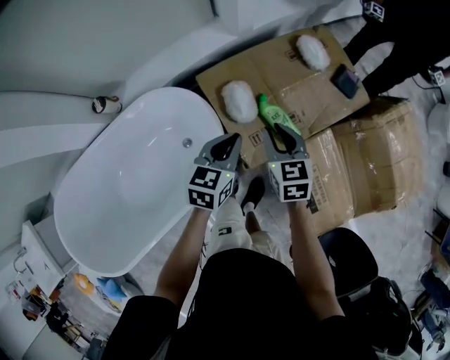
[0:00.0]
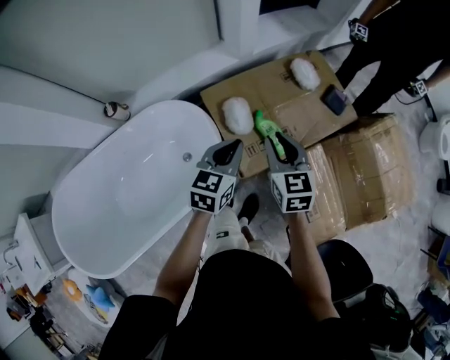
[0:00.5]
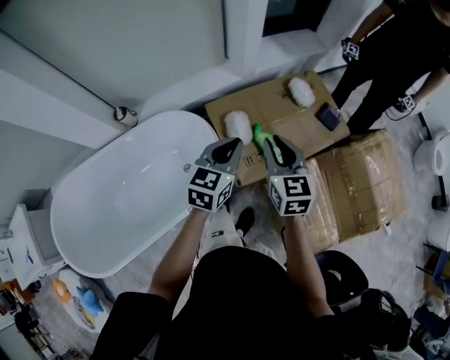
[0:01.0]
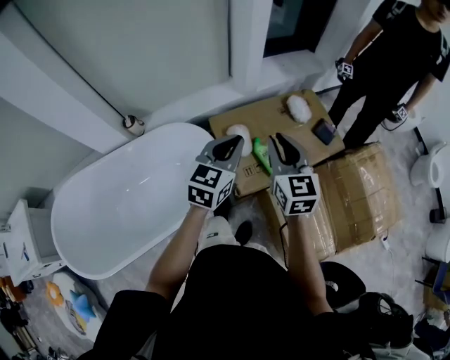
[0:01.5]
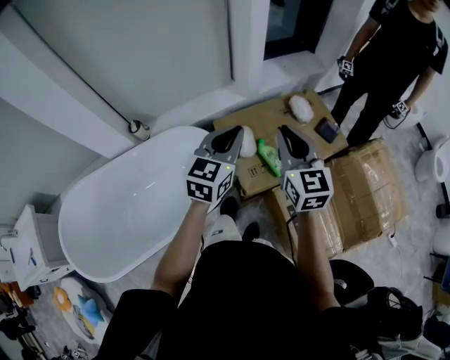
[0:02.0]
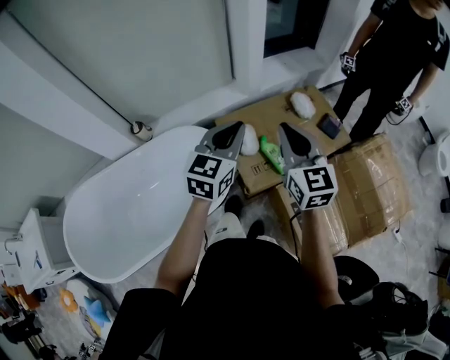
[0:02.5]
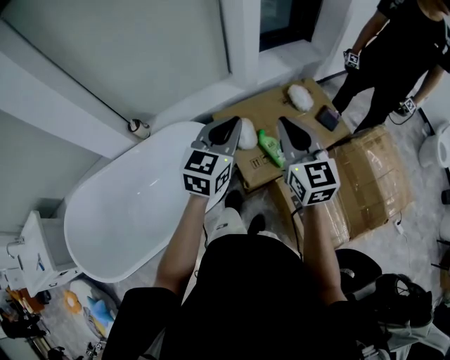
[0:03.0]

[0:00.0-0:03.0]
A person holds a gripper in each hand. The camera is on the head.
0:00.0 to 0:01.5: The grippers both shift upward by approximately 20 cm. The left gripper changes its angle by approximately 20 degrees; the right gripper turns by approximately 30 degrees.
0:01.5 to 0:03.0: The right gripper heads upward, covering approximately 5 cm.

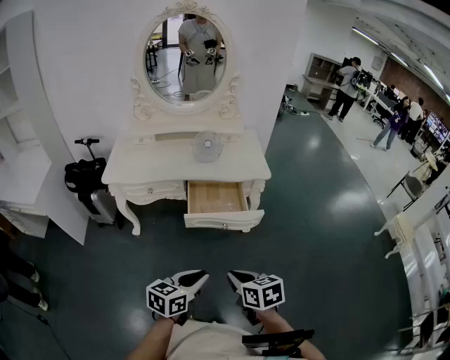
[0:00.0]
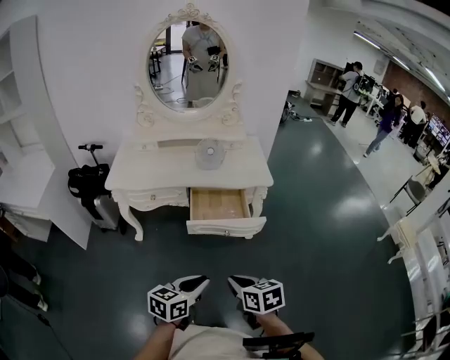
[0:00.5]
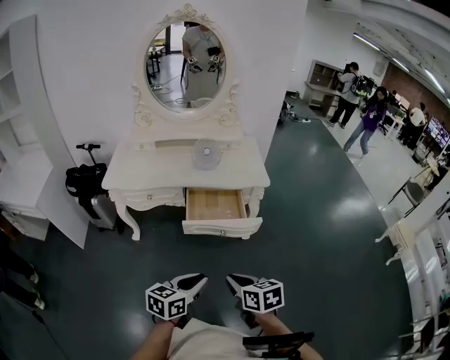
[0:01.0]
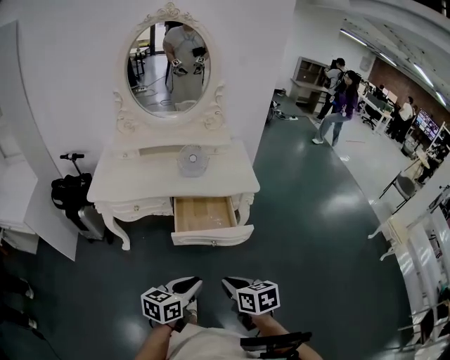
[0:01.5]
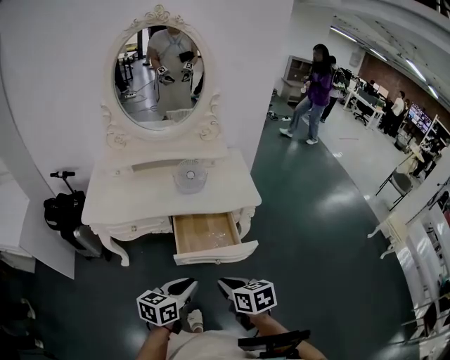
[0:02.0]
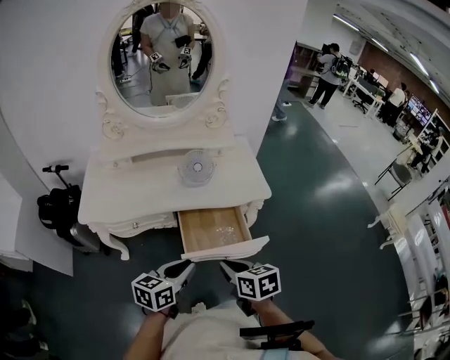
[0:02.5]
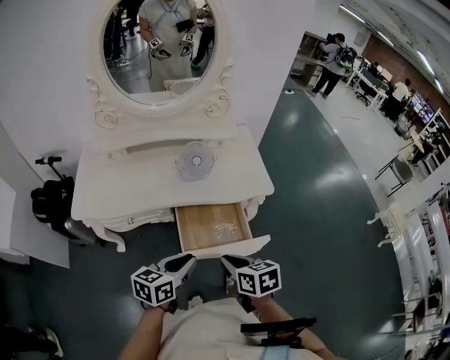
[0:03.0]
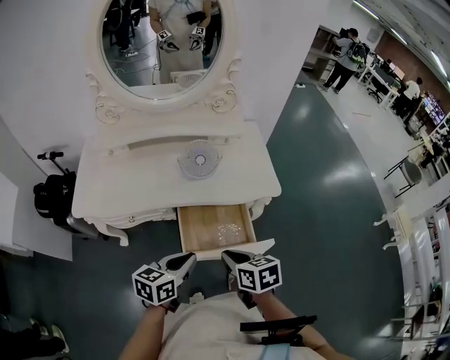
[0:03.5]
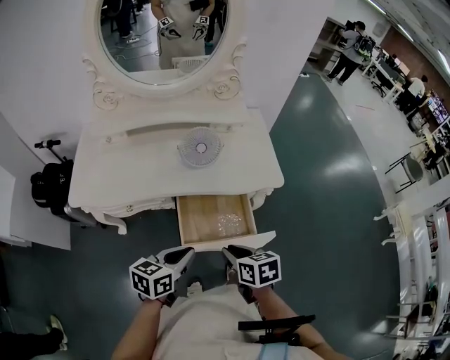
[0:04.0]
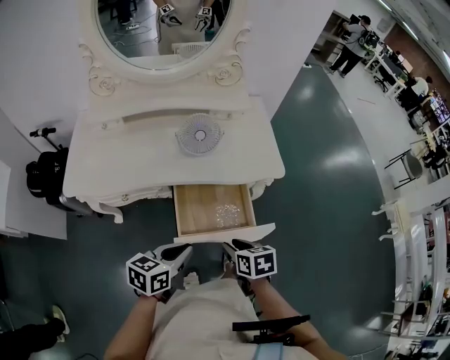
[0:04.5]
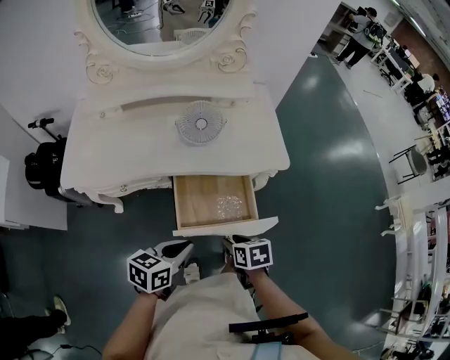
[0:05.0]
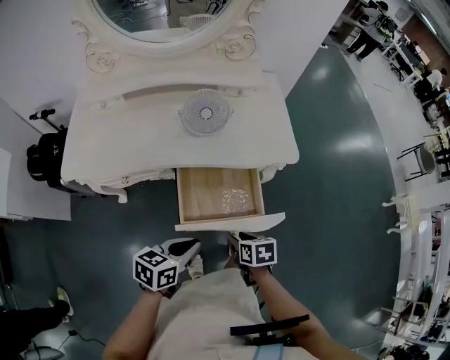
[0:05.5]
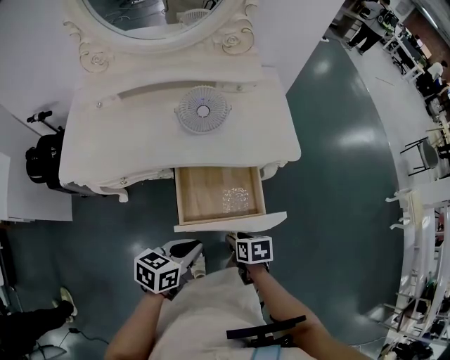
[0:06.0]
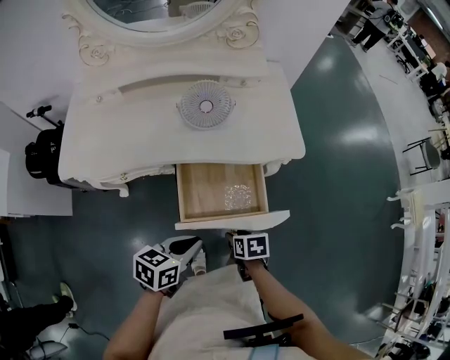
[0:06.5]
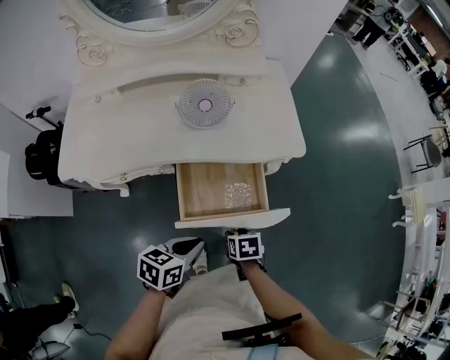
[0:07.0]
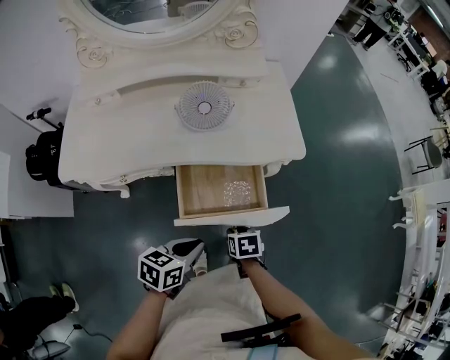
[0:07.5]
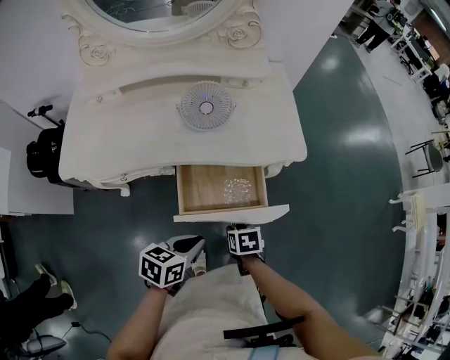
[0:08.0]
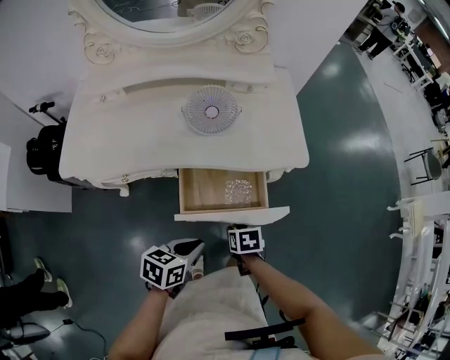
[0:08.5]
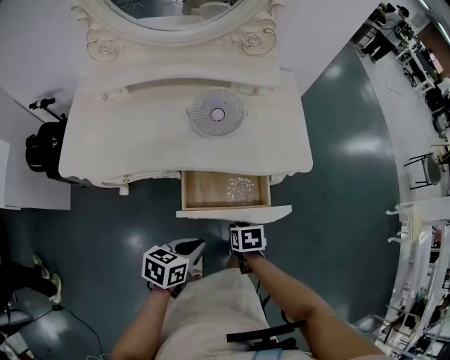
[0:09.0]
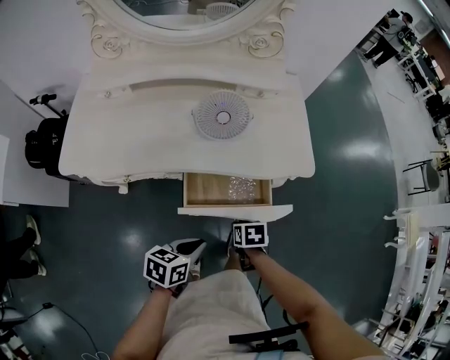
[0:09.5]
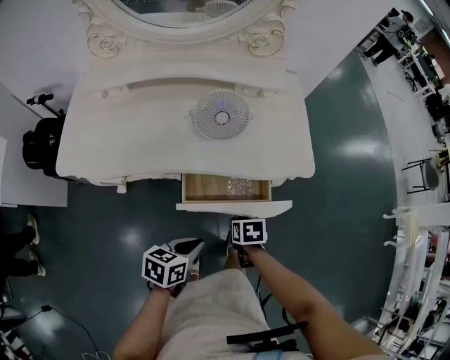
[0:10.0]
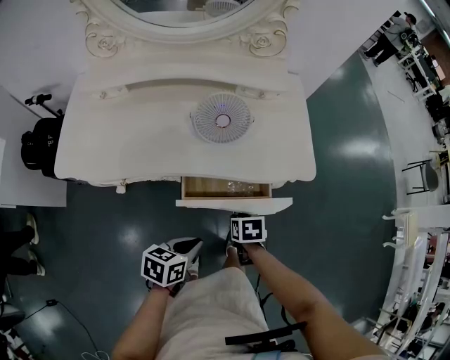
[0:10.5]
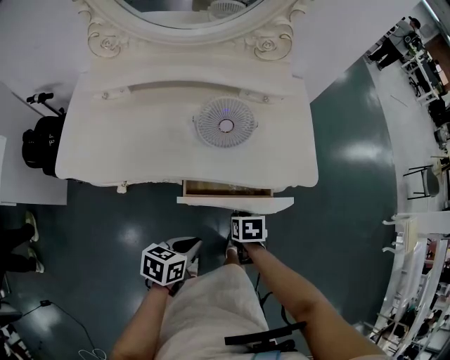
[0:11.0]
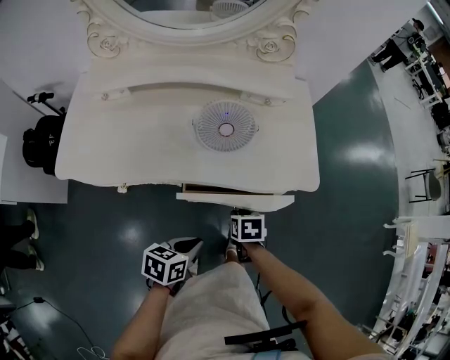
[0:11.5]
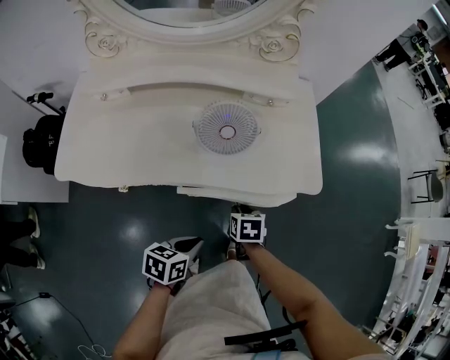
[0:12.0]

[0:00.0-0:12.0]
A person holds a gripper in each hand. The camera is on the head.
0:00.0 to 0:02.0: Both grippers move forward, about 15 cm.
0:02.0 to 0:04.0: The left gripper is displaced forward by roughly 15 cm, while the right gripper travels forward and downward by approximately 15 cm.
0:04.0 to 0:06.0: The right gripper shifts some 15 cm downward, and opens up; the left gripper goes approximately 5 cm downward.
0:06.0 to 0:08.0: The grippers move only a little.
0:08.0 to 0:10.0: The right gripper shifts about 5 cm forward.
0:10.0 to 0:12.0: The right gripper travels forward by approximately 10 cm. The left gripper moves about 5 cm.

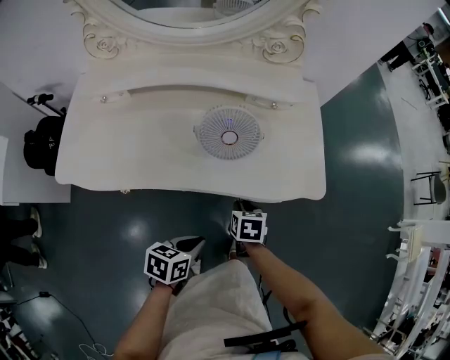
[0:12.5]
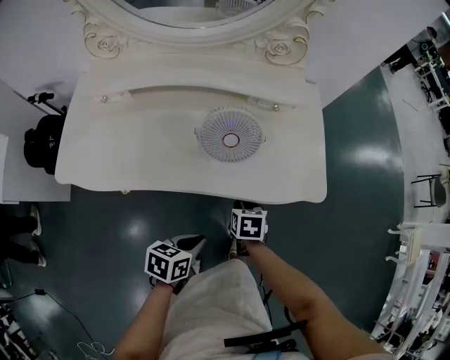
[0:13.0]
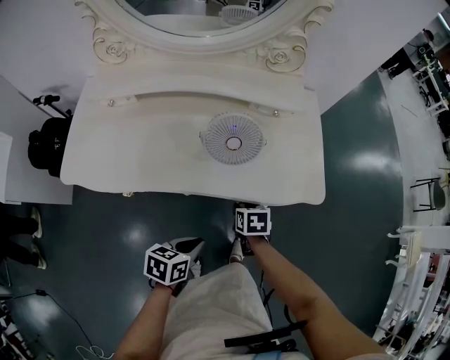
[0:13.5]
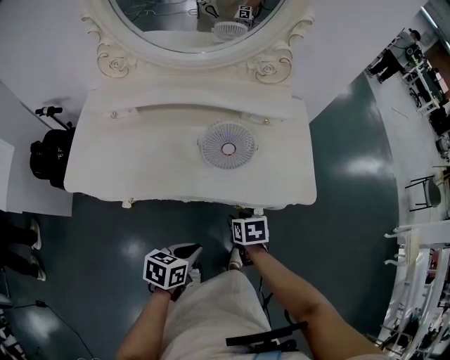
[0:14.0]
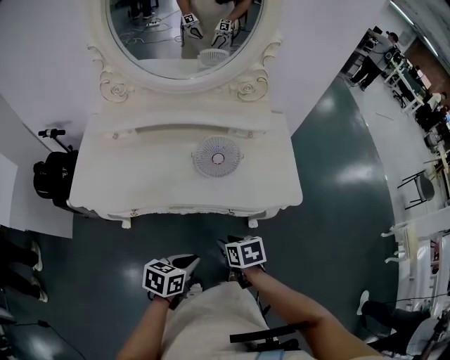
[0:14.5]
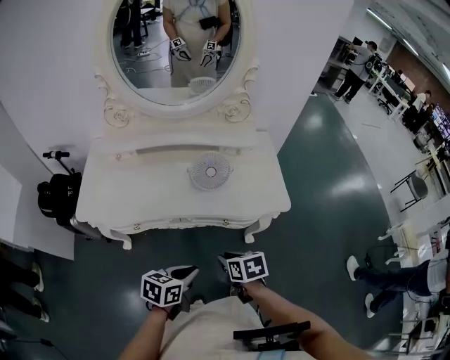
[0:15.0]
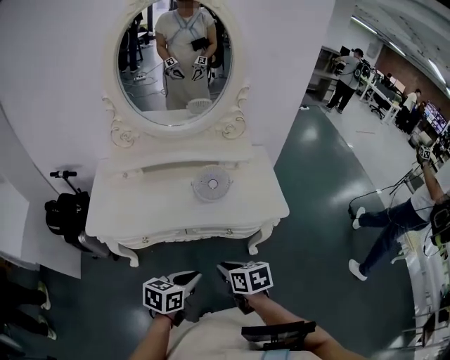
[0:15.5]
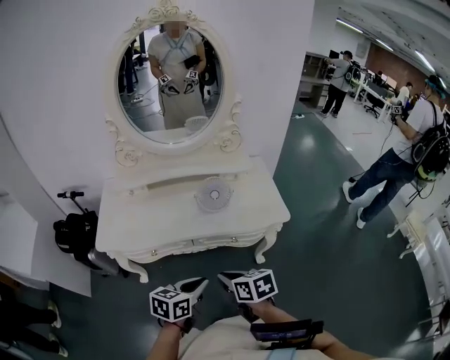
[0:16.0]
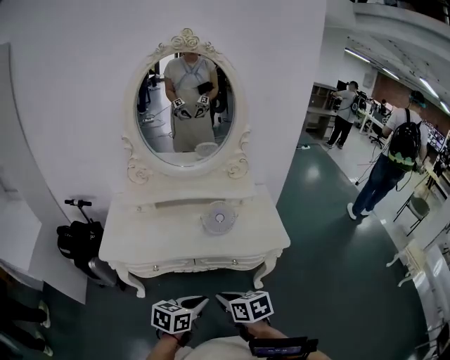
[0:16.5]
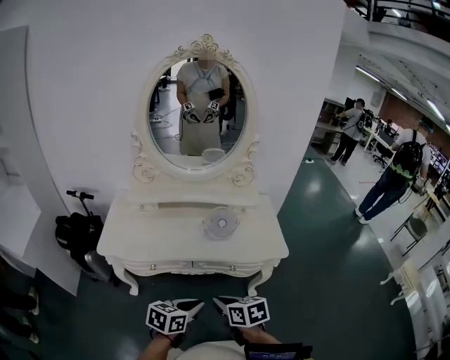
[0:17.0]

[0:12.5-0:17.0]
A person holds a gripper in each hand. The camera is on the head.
0:12.5 to 0:14.5: The right gripper heads backward and upward, covering some 15 cm. The left gripper is displaced upward by some 5 cm.
0:14.5 to 0:17.0: The two grippers go approximately 20 cm upward and backward. The right gripper closes up.

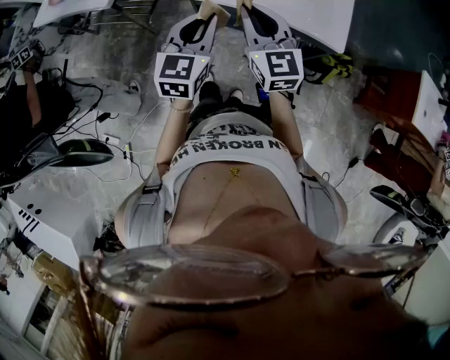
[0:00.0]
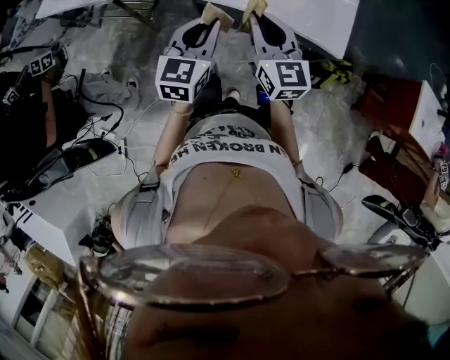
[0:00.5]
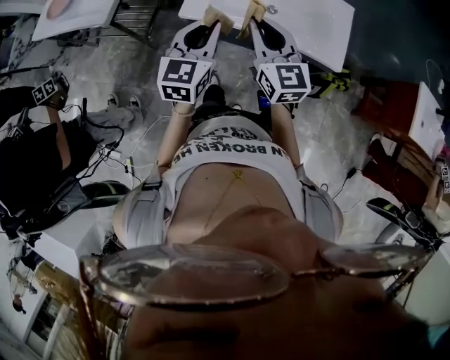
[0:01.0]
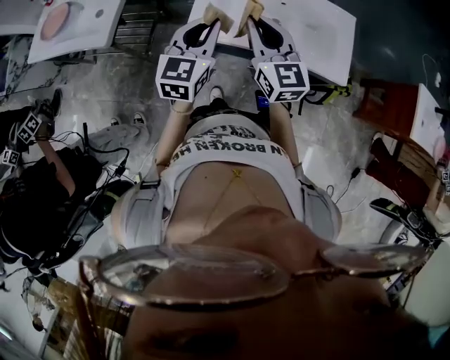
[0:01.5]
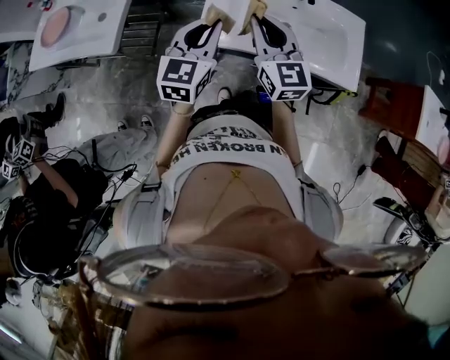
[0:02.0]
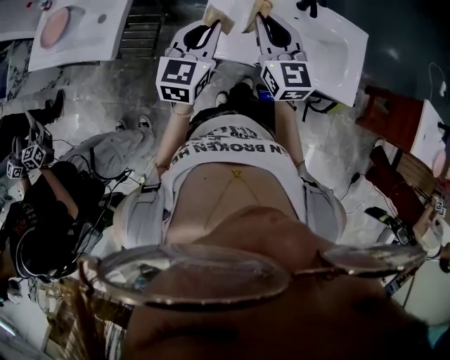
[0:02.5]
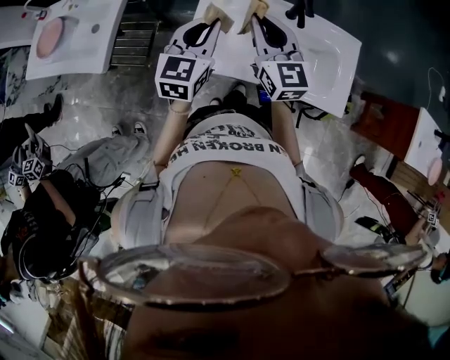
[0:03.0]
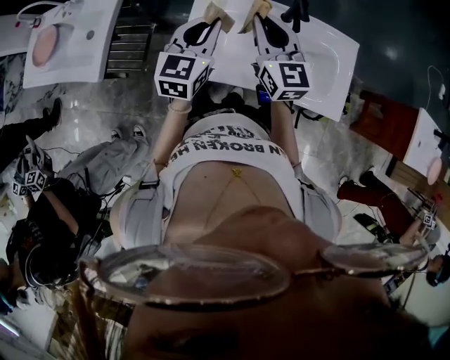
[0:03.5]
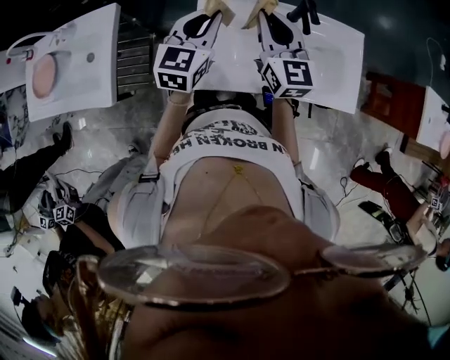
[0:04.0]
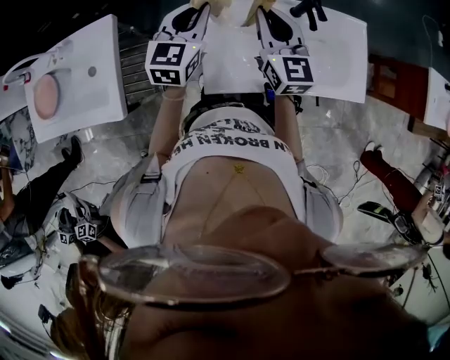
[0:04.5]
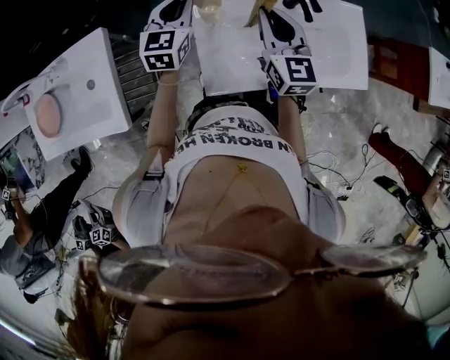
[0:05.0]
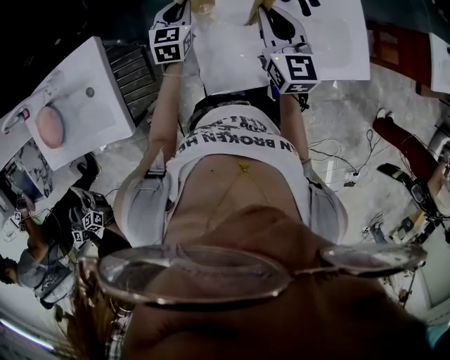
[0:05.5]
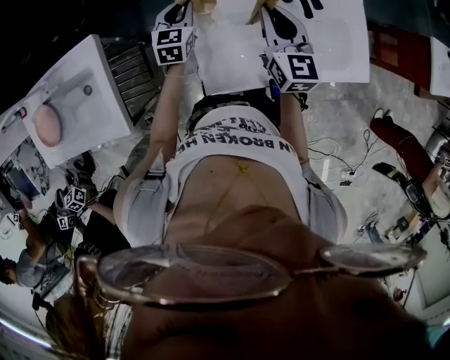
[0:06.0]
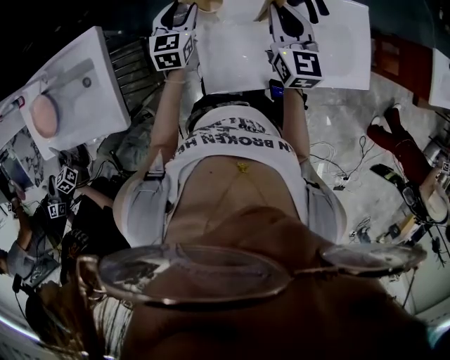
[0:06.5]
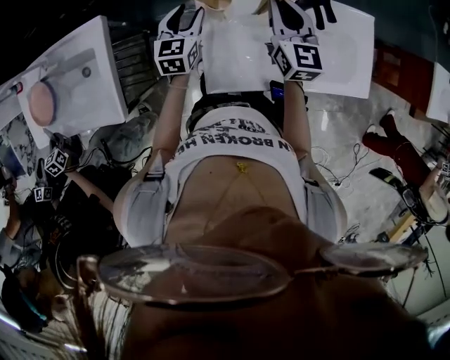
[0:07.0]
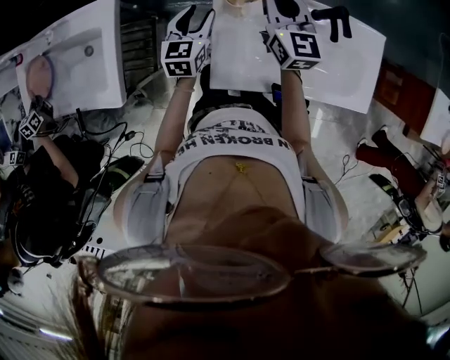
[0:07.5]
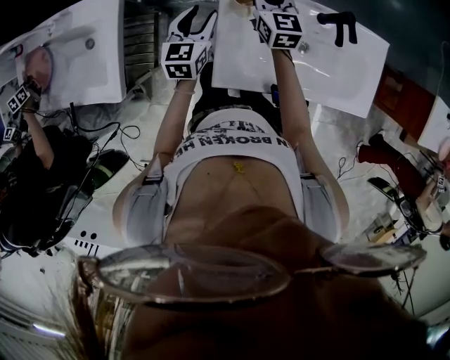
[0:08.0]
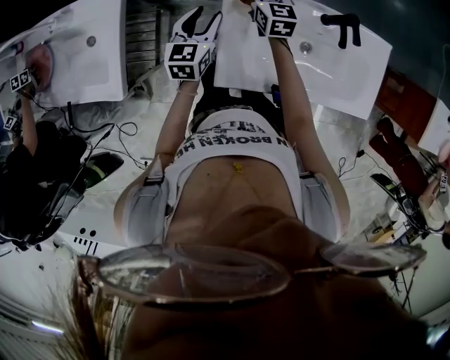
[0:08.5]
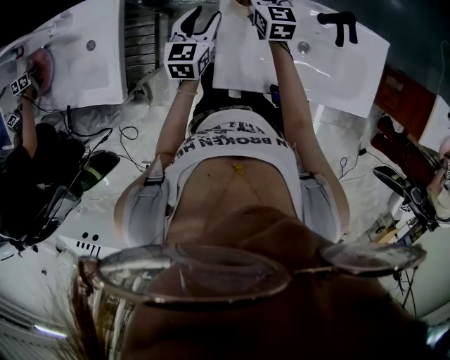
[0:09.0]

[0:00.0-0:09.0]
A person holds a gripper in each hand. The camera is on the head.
0:00.0 to 0:02.0: The grippers both shift forward by roughly 20 cm.
0:02.0 to 0:04.5: The grippers both shift forward by about 25 cm.
0:04.5 to 0:07.0: The right gripper heads forward and downward, covering roughly 10 cm. The left gripper is displaced downward by roughly 15 cm, and opens its fingers.
0:07.0 to 0:09.0: The right gripper moves downward, to the left and forward, about 20 cm, and opens up.
